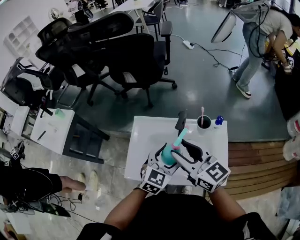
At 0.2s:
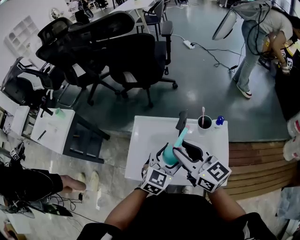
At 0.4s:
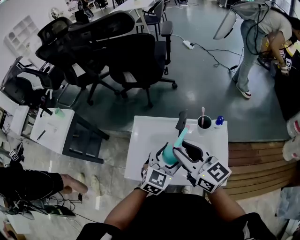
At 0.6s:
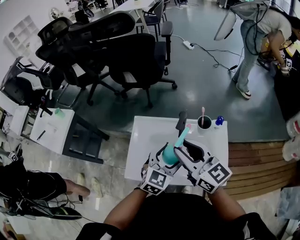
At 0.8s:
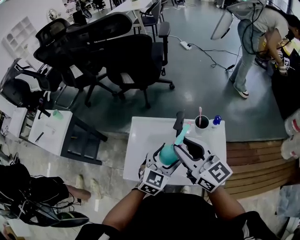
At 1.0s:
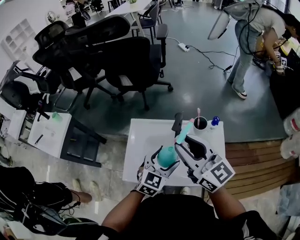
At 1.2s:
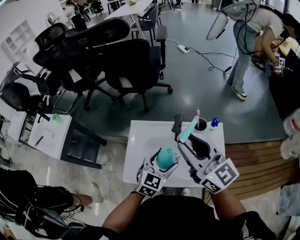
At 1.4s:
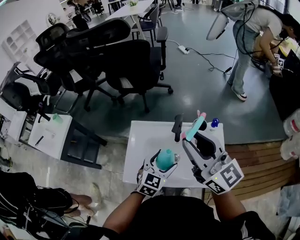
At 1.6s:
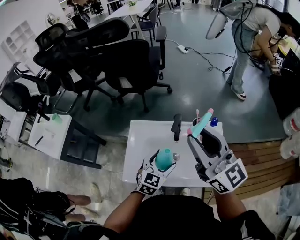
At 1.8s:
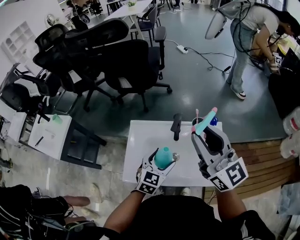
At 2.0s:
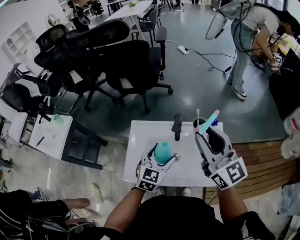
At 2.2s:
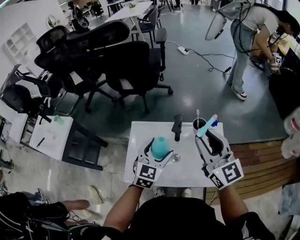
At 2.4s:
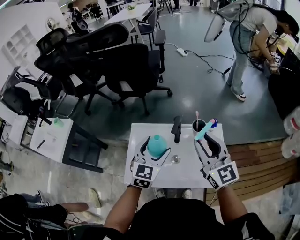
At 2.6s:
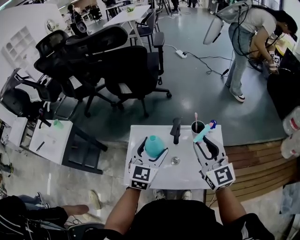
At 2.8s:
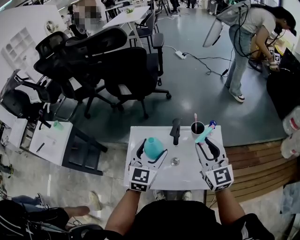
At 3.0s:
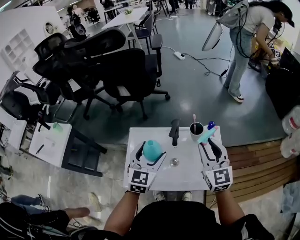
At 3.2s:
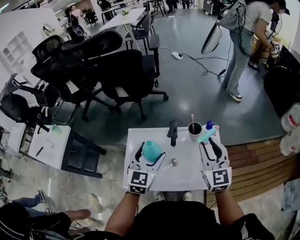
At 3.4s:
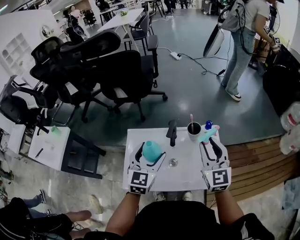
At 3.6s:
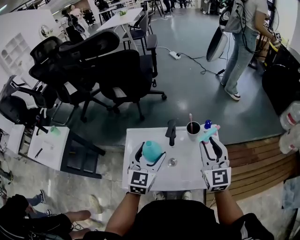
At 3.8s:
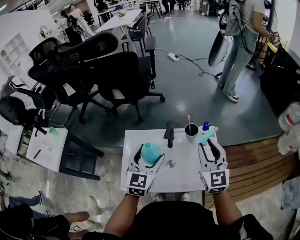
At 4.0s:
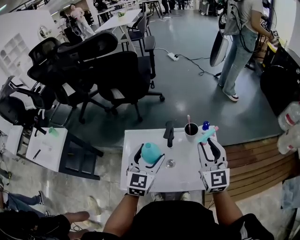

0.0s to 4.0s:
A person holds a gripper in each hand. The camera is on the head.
0.0s to 1.4s: The right gripper goes roughly 10 cm upward.
1.4s to 2.6s: The right gripper is displaced downward and to the right by roughly 10 cm, and swivels roughly 20 degrees. Meanwhile the left gripper moves upward and forward, approximately 10 cm.
2.6s to 4.0s: The right gripper shifts roughly 5 cm to the right.

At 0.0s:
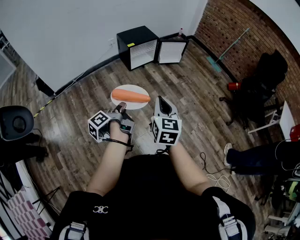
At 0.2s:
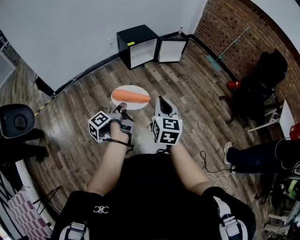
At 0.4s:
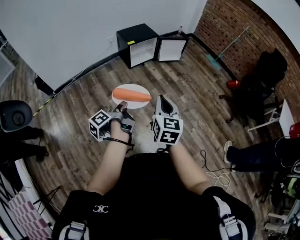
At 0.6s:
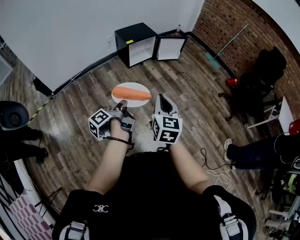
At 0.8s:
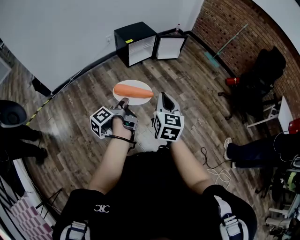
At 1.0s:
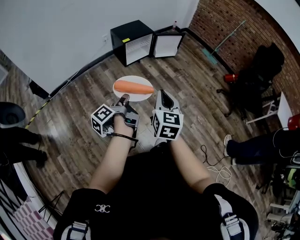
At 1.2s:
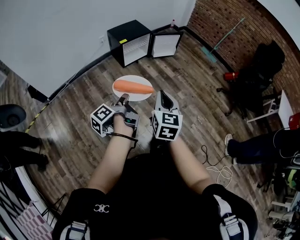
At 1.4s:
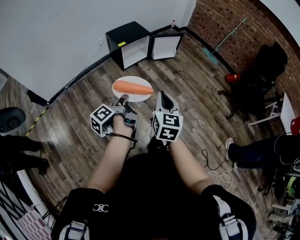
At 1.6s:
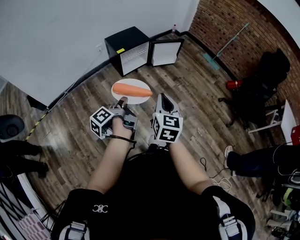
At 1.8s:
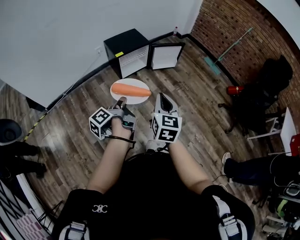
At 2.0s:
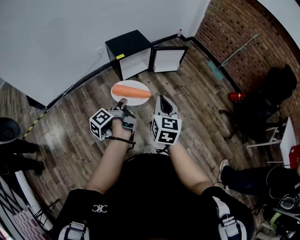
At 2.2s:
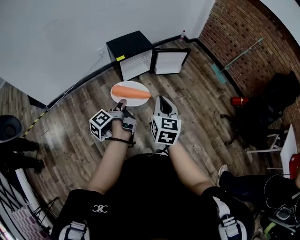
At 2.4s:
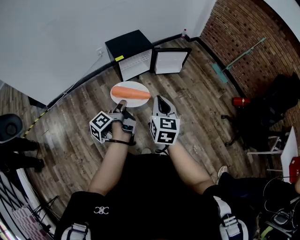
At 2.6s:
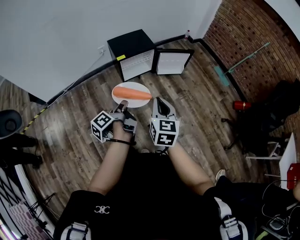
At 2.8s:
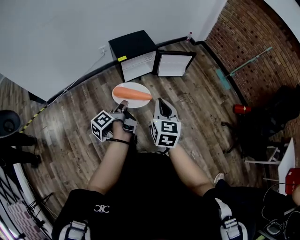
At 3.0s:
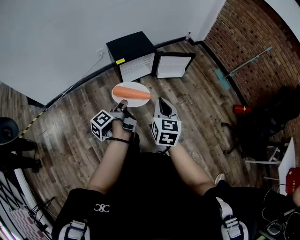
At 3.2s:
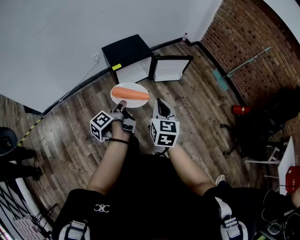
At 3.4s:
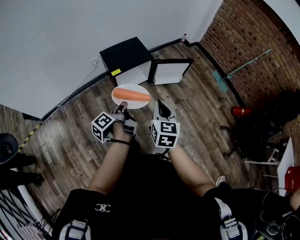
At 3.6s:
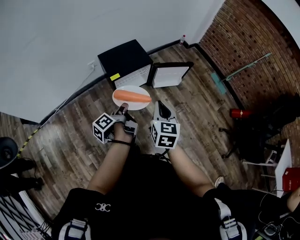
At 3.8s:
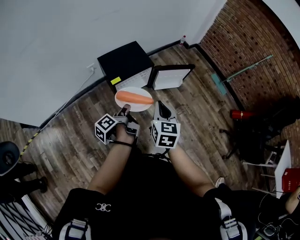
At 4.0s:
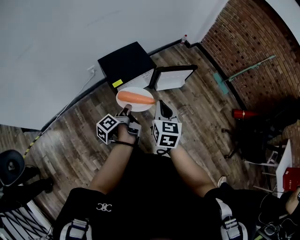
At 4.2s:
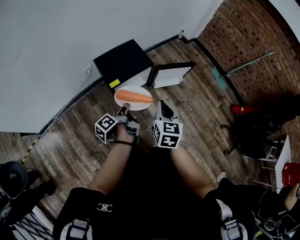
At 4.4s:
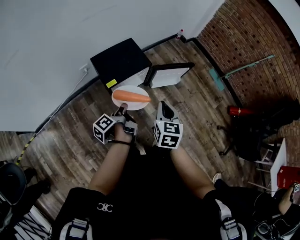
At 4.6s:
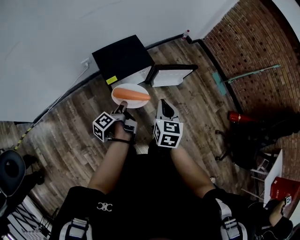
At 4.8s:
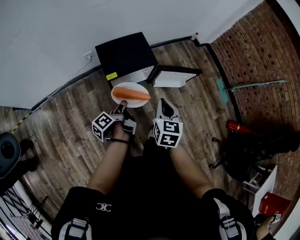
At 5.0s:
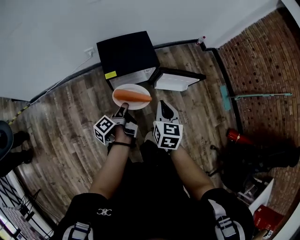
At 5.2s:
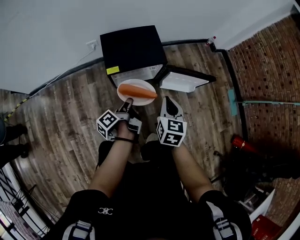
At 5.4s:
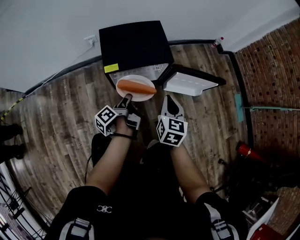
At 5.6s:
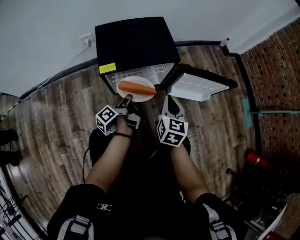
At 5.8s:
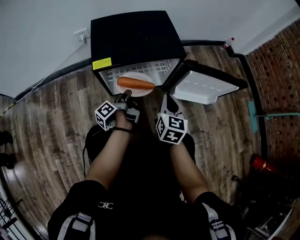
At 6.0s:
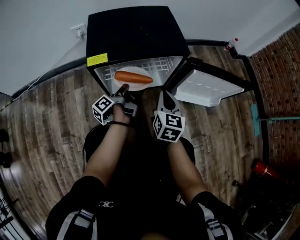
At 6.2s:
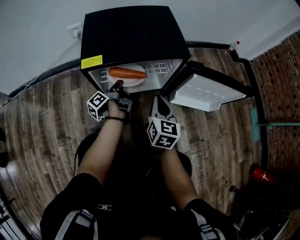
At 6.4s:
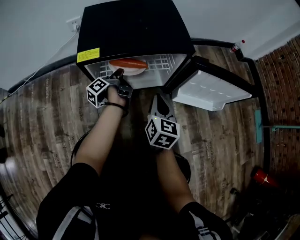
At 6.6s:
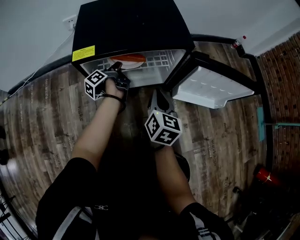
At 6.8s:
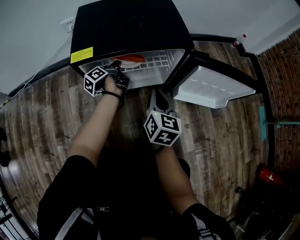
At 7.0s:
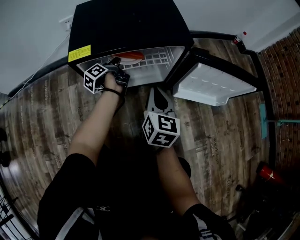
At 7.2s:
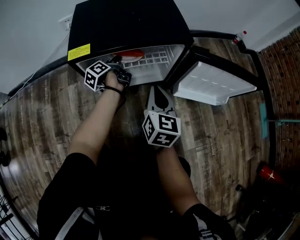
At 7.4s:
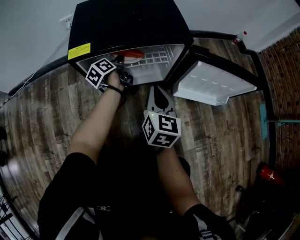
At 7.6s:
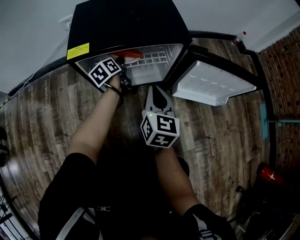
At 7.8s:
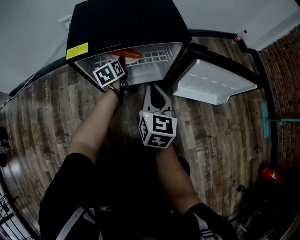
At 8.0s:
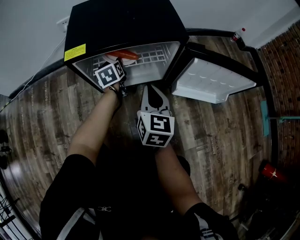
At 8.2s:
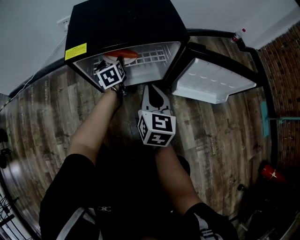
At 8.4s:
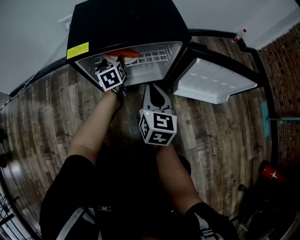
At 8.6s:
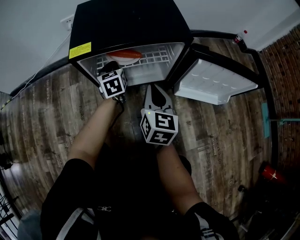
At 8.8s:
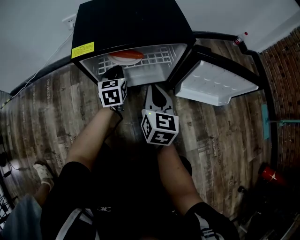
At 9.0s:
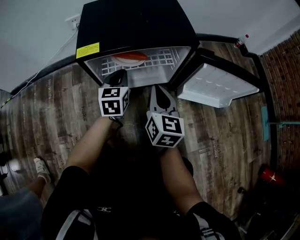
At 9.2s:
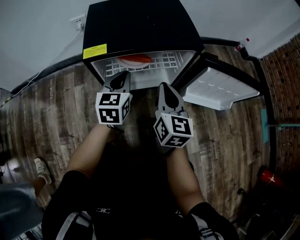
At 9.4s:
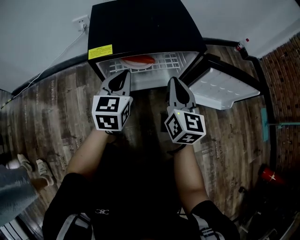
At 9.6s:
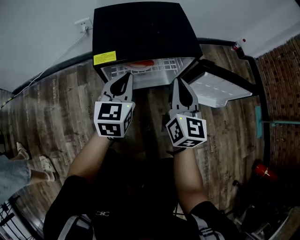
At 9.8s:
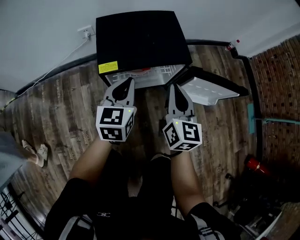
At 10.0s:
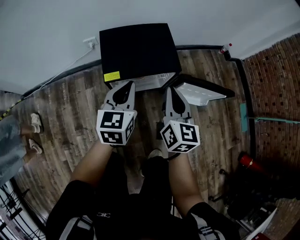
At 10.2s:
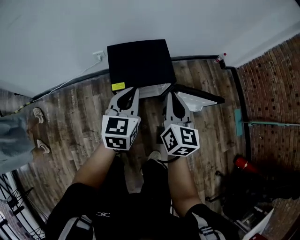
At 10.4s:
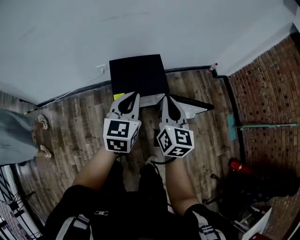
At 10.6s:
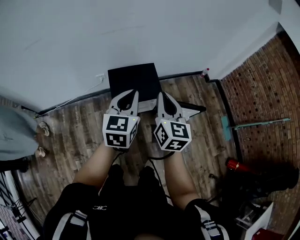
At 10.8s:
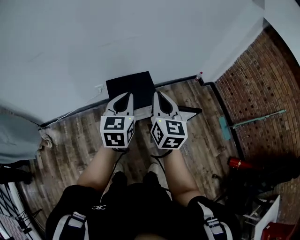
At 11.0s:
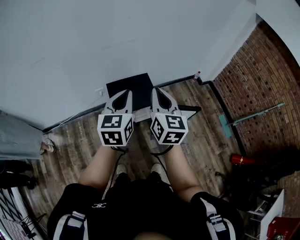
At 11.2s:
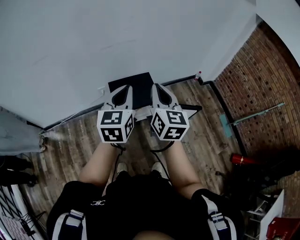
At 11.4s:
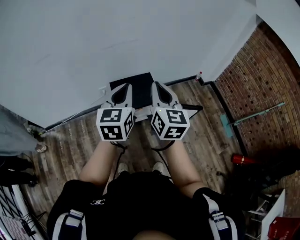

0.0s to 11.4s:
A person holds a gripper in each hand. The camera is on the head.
0.0s to 1.4s: The right gripper moves some 10 cm.
1.4s to 2.8s: The right gripper ends up about 30 cm from where it was.
2.8s to 4.2s: The right gripper shifts by roughly 30 cm.
4.2s to 5.6s: The right gripper shifts some 35 cm downward.
5.6s to 7.2s: The right gripper moves downward, some 15 cm.
8.6s to 10.0s: The right gripper heads upward, covering roughly 35 cm.
10.0s to 11.4s: The right gripper heads upward, covering roughly 40 cm.

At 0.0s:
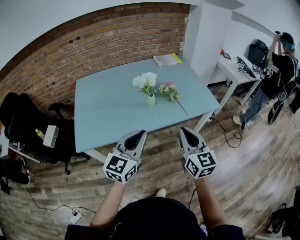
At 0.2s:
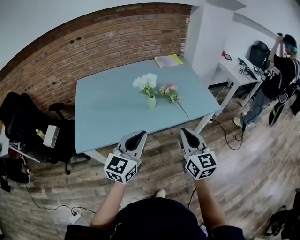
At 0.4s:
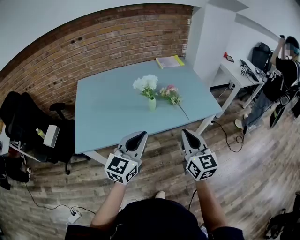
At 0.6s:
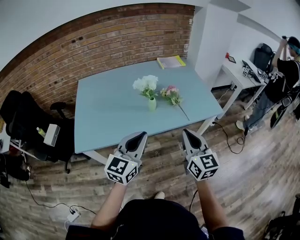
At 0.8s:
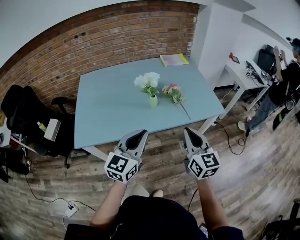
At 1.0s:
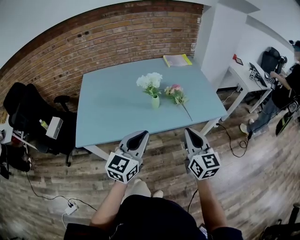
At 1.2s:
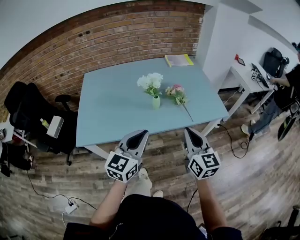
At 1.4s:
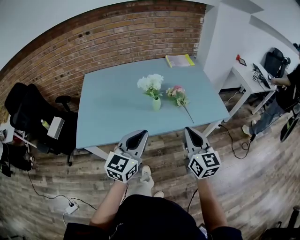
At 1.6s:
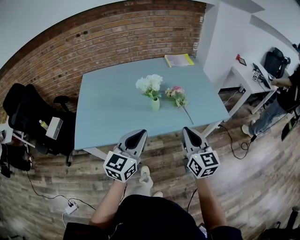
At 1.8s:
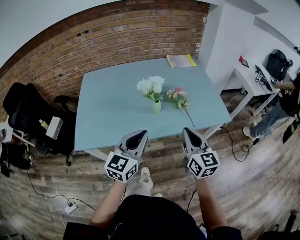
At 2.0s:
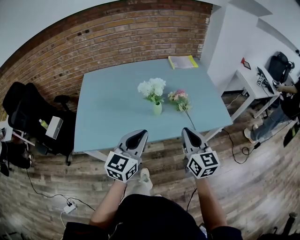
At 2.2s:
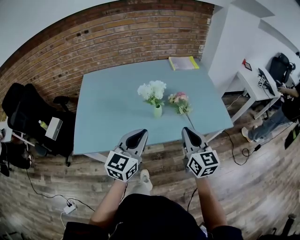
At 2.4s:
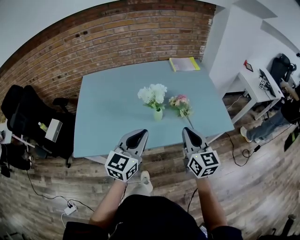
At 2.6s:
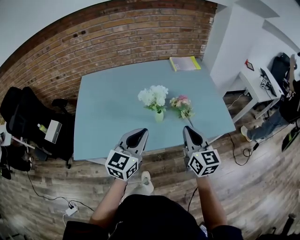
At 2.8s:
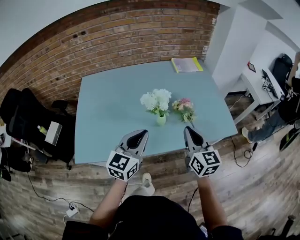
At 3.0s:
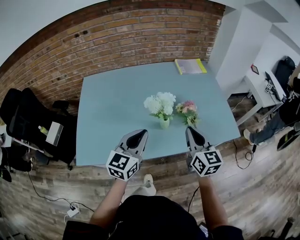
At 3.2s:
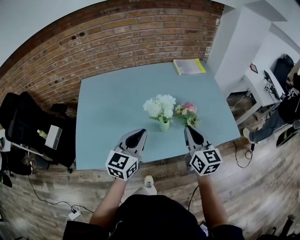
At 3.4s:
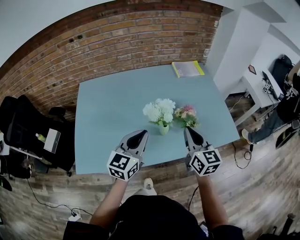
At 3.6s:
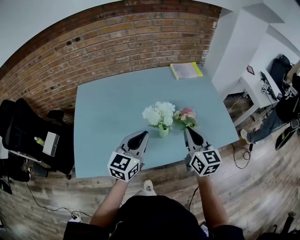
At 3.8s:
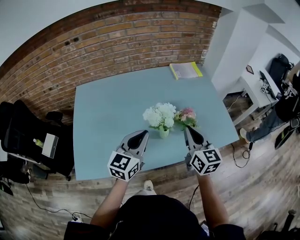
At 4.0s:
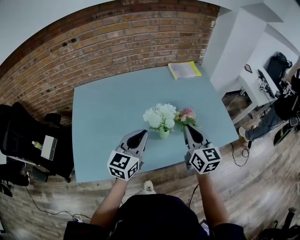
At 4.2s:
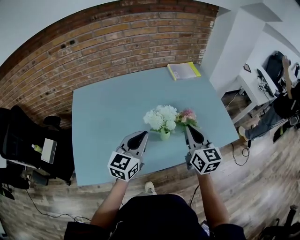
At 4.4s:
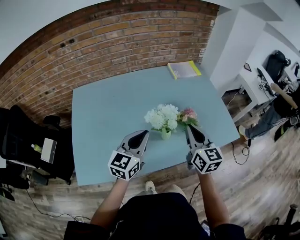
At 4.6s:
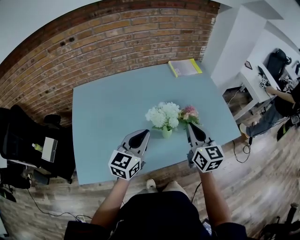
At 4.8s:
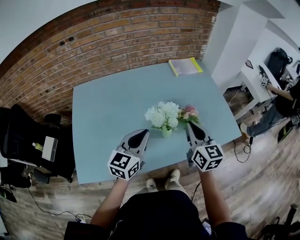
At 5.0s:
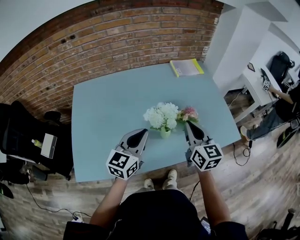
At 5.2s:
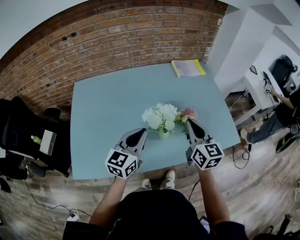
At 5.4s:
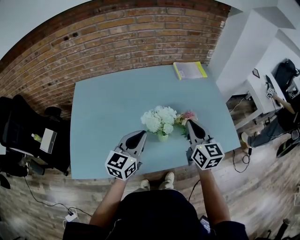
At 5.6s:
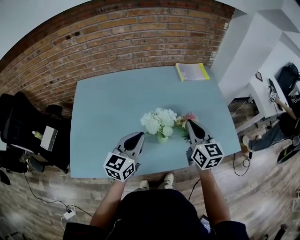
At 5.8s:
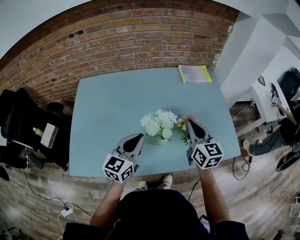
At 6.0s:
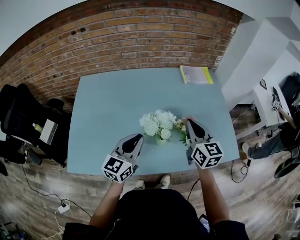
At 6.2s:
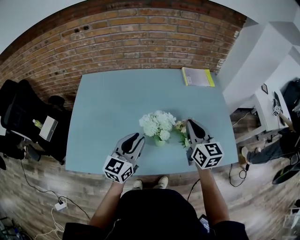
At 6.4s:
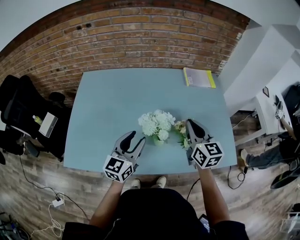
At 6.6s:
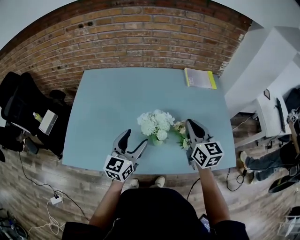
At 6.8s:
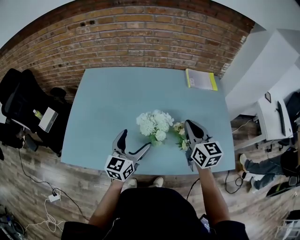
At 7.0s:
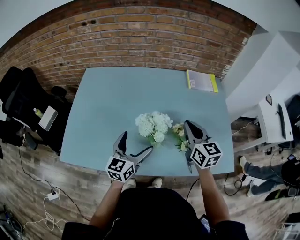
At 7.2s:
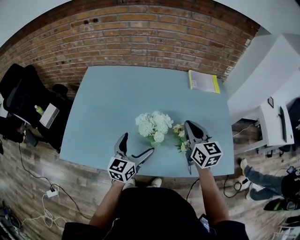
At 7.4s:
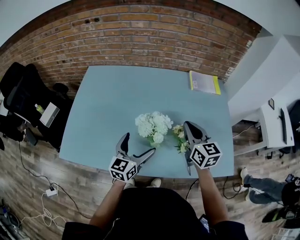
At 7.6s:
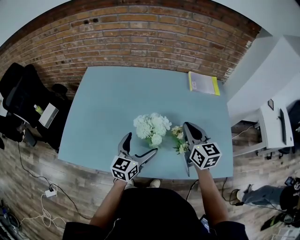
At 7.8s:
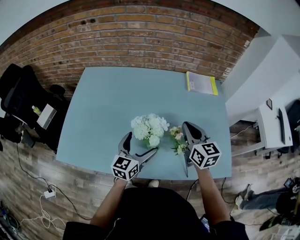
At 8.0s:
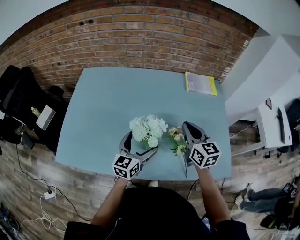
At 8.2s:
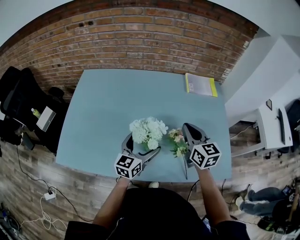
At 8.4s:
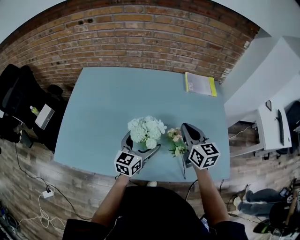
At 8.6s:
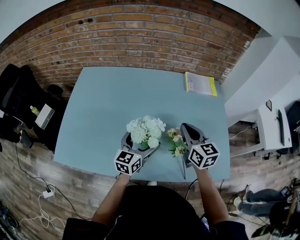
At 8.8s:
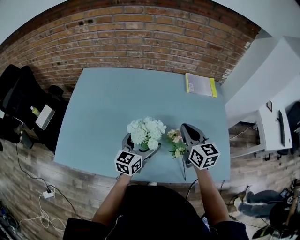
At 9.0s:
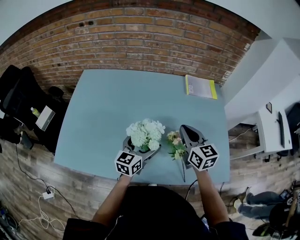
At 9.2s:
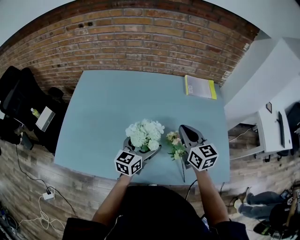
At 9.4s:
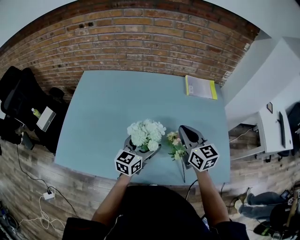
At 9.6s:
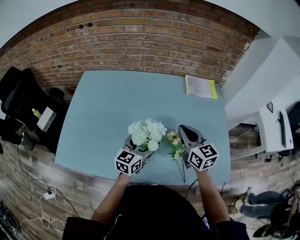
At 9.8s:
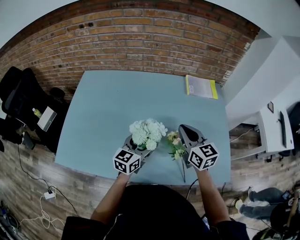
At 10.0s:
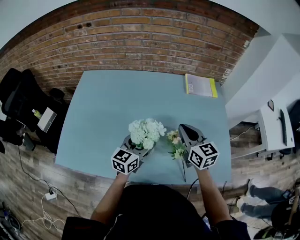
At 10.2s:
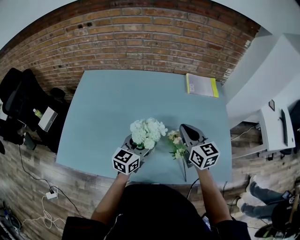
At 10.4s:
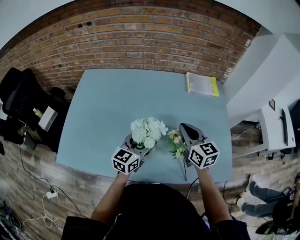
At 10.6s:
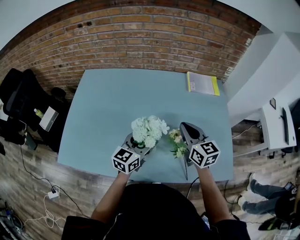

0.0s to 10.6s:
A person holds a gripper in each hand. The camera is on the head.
0.0s to 1.6s: Both grippers travel together forward, approximately 10 cm.
1.6s to 3.0s: Both grippers move forward, about 15 cm.
3.0s to 4.6s: The grippers both shift forward by approximately 5 cm.
4.6s to 6.0s: The right gripper goes about 10 cm forward.
6.0s to 7.6s: The left gripper is displaced downward by roughly 5 cm, and opens its fingers; the right gripper shifts by some 5 cm.
7.6s to 9.0s: The left gripper changes place by approximately 5 cm.
9.0s to 10.6s: The left gripper closes up.
